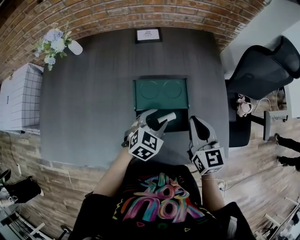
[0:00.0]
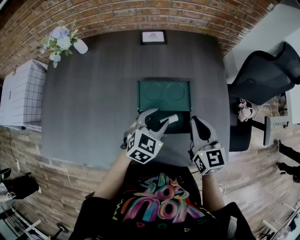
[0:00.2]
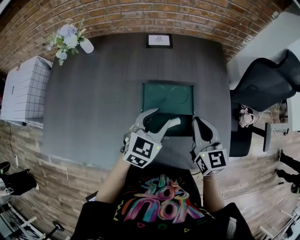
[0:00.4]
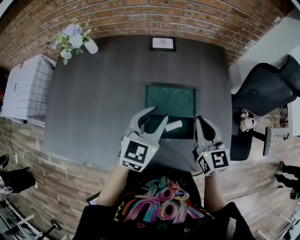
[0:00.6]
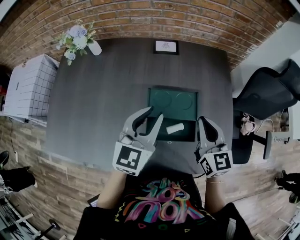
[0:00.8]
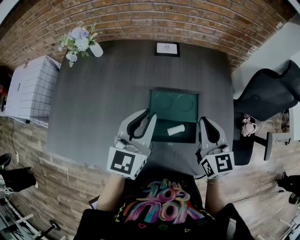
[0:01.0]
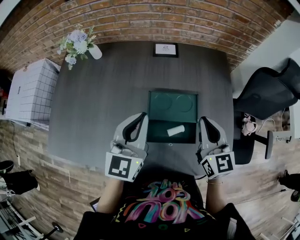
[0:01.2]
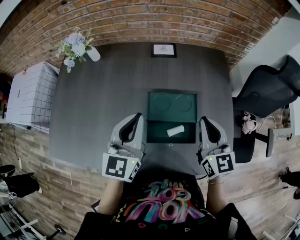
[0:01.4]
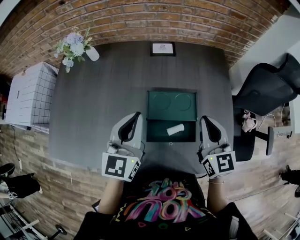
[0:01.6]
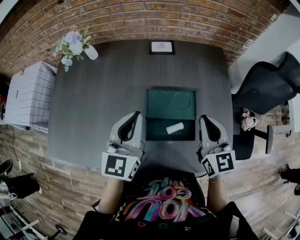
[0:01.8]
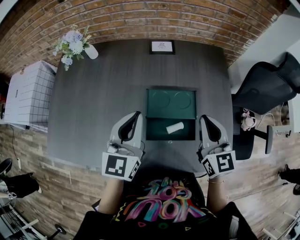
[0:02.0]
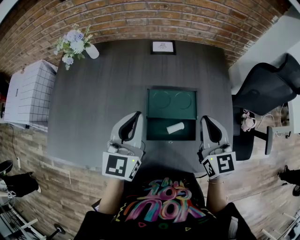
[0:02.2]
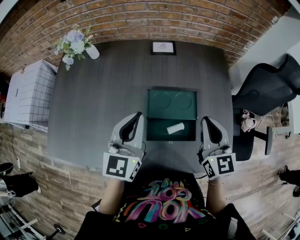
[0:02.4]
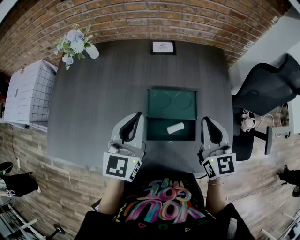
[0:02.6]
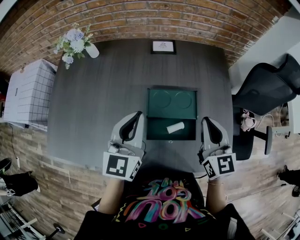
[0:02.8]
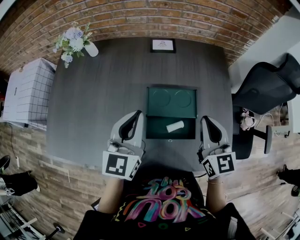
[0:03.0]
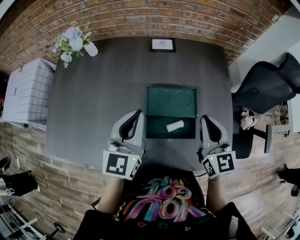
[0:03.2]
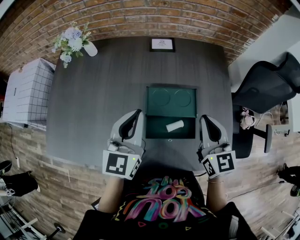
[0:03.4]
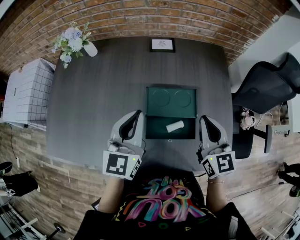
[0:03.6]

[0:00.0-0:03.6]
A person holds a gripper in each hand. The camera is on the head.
0:00.0 to 0:01.8: The right gripper shifts roughly 5 cm upward. Meanwhile the left gripper moves upward and to the left, roughly 25 cm, tilts its fingers roughly 30 degrees upward, and closes.
0:01.8 to 0:03.6: Both grippers stay about where they are.

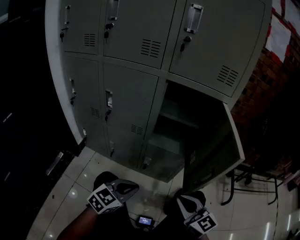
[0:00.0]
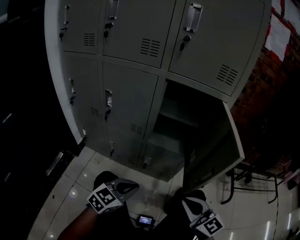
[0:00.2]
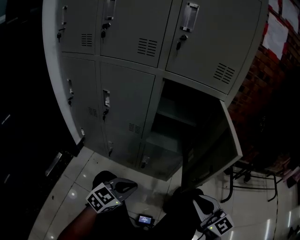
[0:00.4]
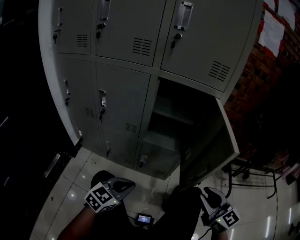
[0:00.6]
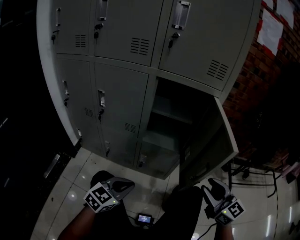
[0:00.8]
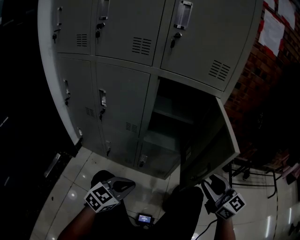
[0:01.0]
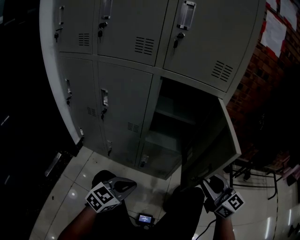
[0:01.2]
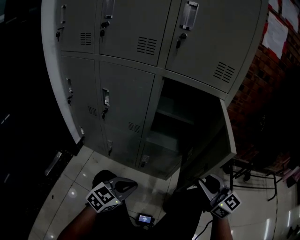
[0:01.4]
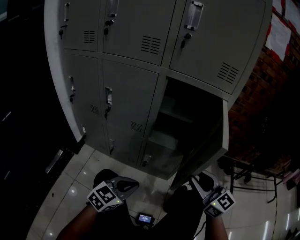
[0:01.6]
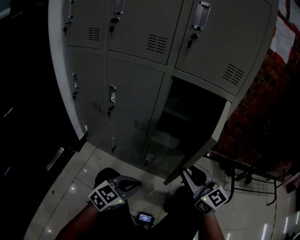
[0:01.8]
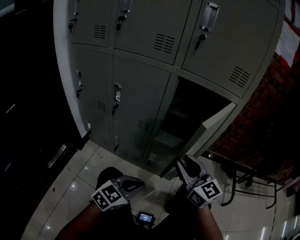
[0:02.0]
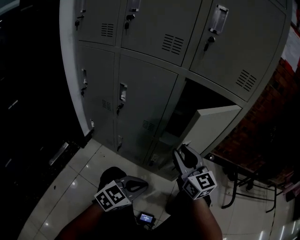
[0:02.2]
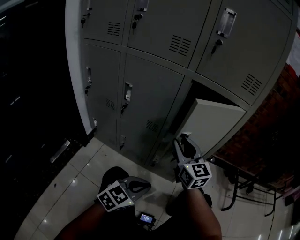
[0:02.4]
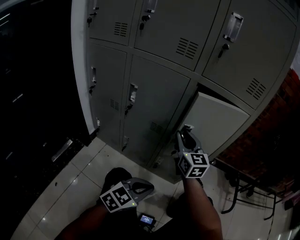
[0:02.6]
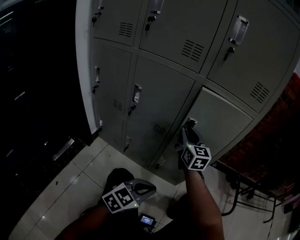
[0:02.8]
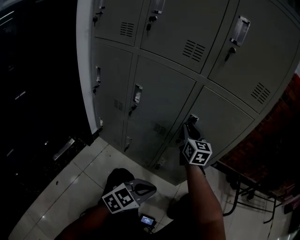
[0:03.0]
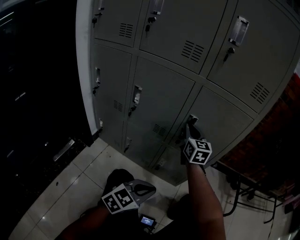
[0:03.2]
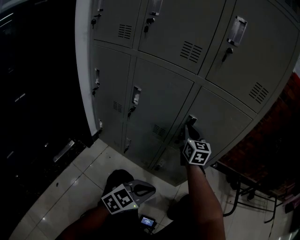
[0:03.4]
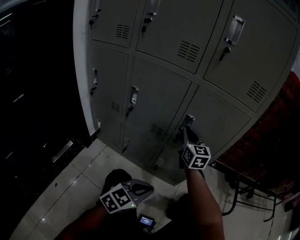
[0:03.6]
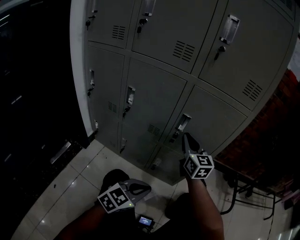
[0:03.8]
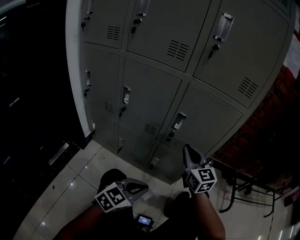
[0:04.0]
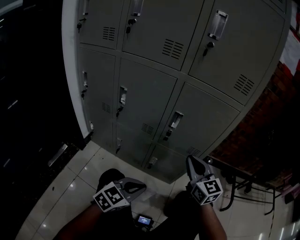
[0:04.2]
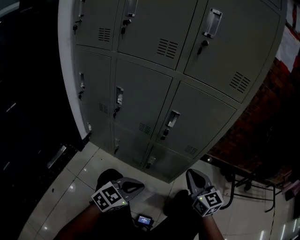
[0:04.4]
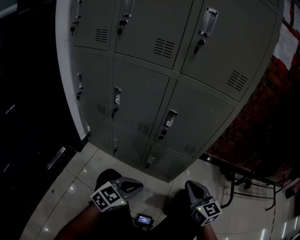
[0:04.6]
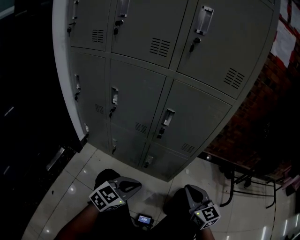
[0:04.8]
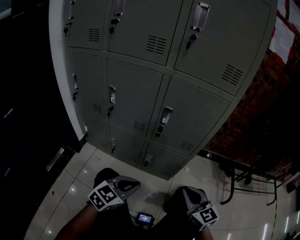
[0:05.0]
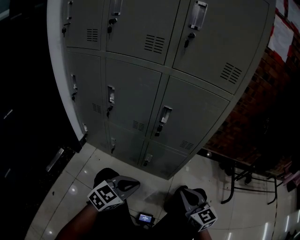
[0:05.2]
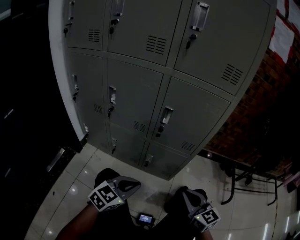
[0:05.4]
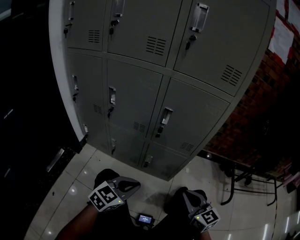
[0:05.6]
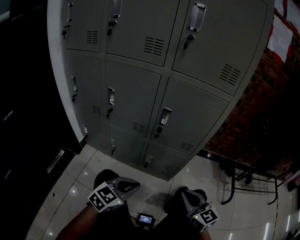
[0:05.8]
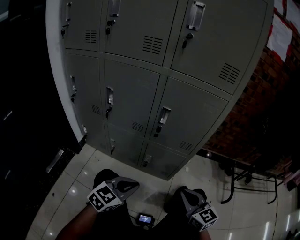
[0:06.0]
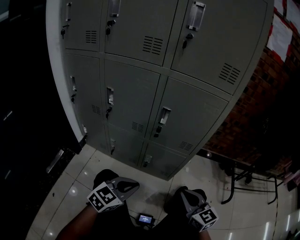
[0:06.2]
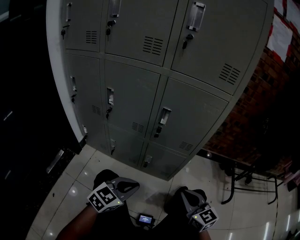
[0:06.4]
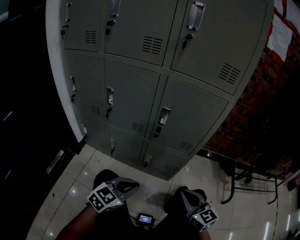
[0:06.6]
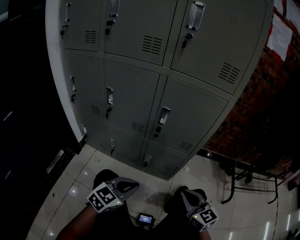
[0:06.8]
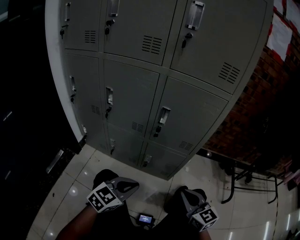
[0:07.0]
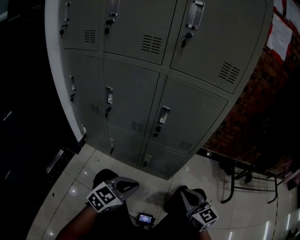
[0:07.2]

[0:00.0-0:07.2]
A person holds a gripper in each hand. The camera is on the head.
0:00.0 to 0:01.4: The right gripper heads upward, to the right and forward, covering roughly 10 cm, and opens up.
0:01.4 to 0:02.8: The right gripper travels forward and to the left by roughly 30 cm.
0:02.8 to 0:04.4: The right gripper goes some 20 cm backward and to the right, and closes up.
0:04.4 to 0:05.8: The right gripper heads backward and downward, covering approximately 10 cm.
0:05.8 to 0:07.2: Neither gripper changes place.

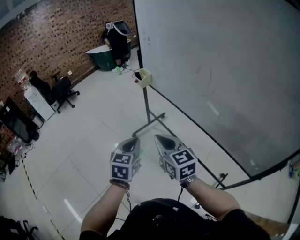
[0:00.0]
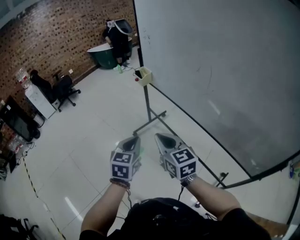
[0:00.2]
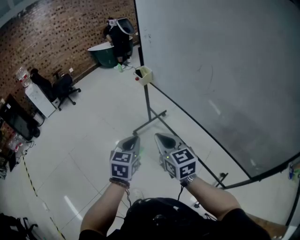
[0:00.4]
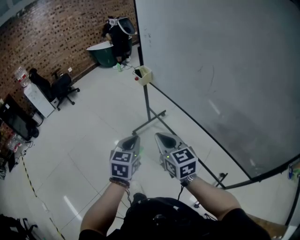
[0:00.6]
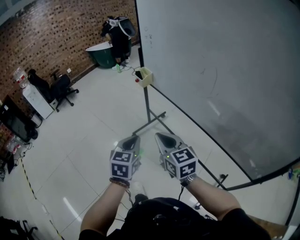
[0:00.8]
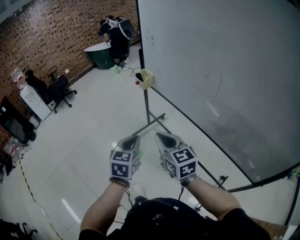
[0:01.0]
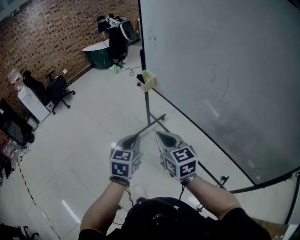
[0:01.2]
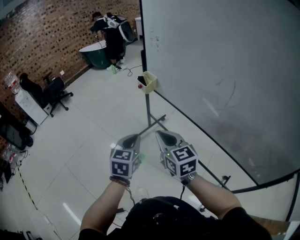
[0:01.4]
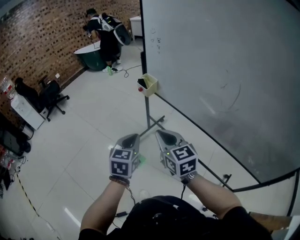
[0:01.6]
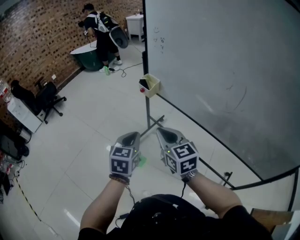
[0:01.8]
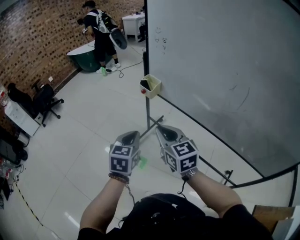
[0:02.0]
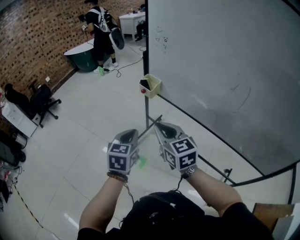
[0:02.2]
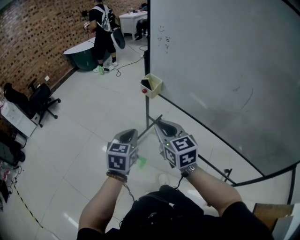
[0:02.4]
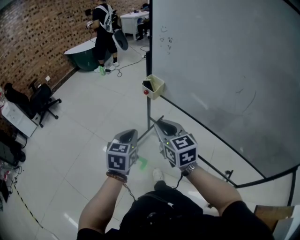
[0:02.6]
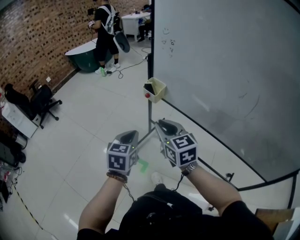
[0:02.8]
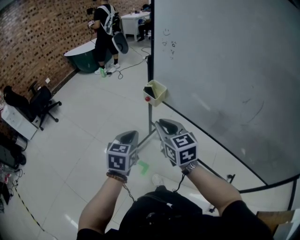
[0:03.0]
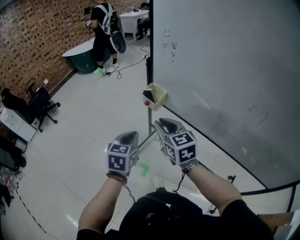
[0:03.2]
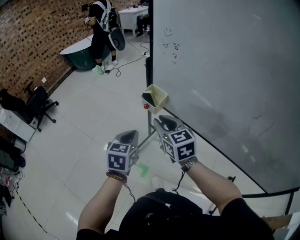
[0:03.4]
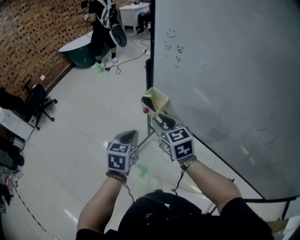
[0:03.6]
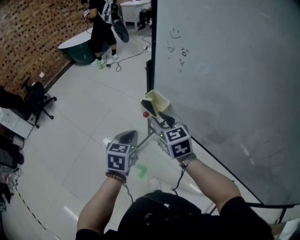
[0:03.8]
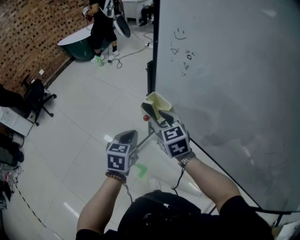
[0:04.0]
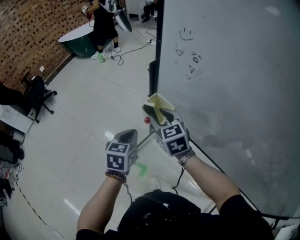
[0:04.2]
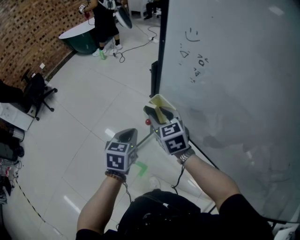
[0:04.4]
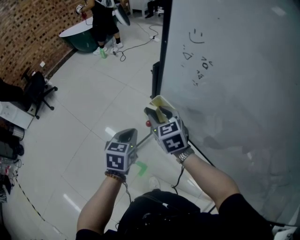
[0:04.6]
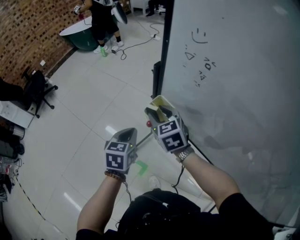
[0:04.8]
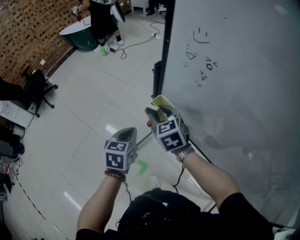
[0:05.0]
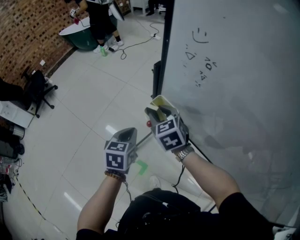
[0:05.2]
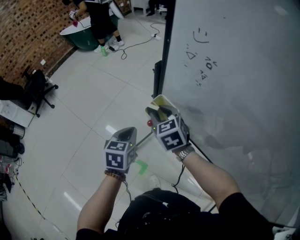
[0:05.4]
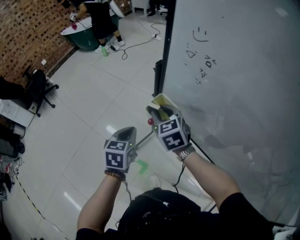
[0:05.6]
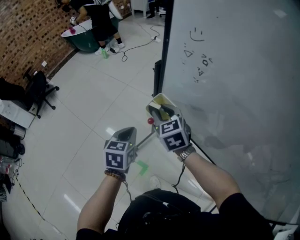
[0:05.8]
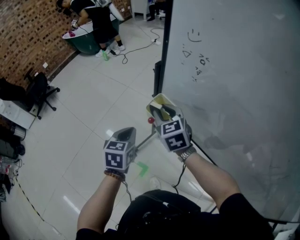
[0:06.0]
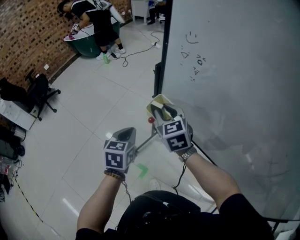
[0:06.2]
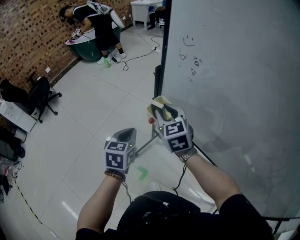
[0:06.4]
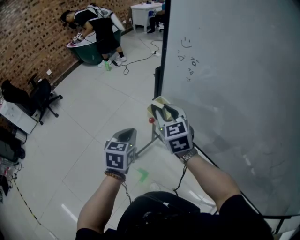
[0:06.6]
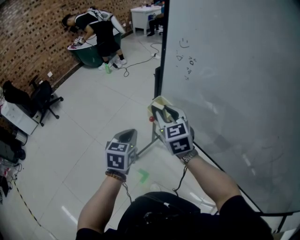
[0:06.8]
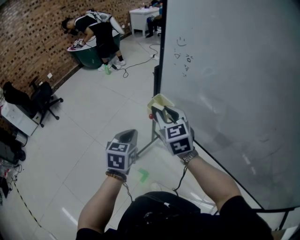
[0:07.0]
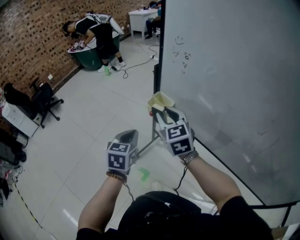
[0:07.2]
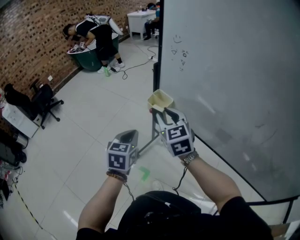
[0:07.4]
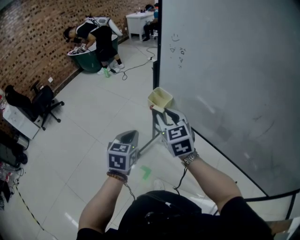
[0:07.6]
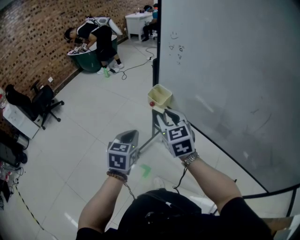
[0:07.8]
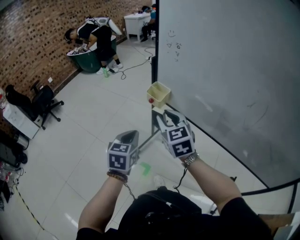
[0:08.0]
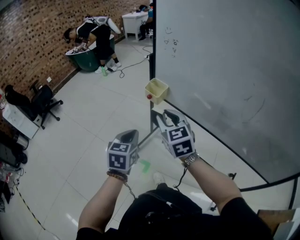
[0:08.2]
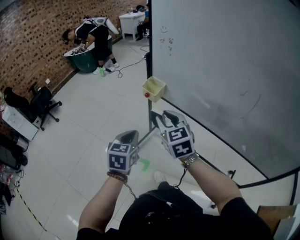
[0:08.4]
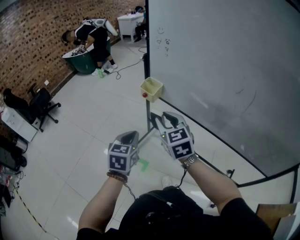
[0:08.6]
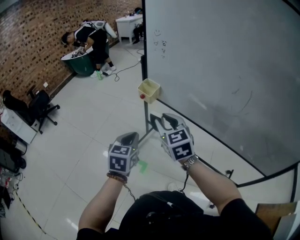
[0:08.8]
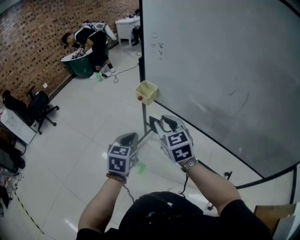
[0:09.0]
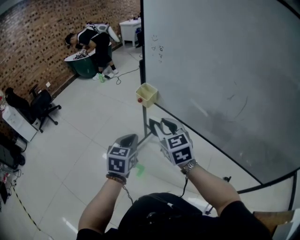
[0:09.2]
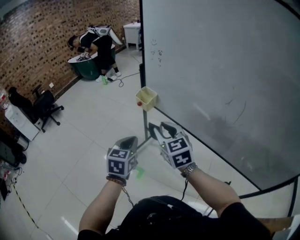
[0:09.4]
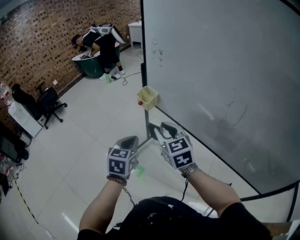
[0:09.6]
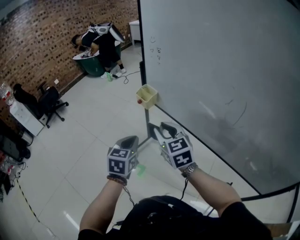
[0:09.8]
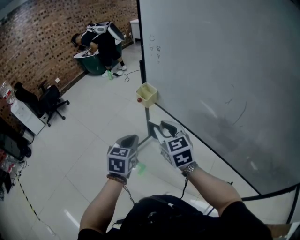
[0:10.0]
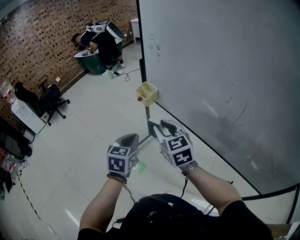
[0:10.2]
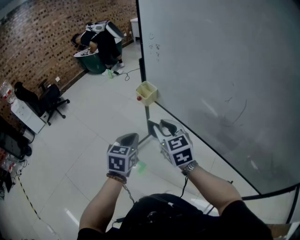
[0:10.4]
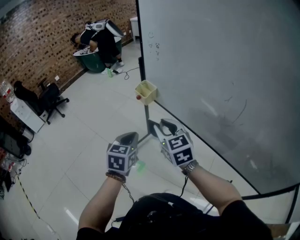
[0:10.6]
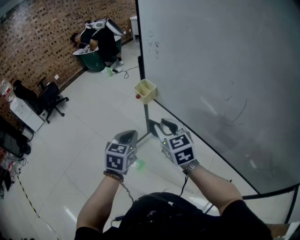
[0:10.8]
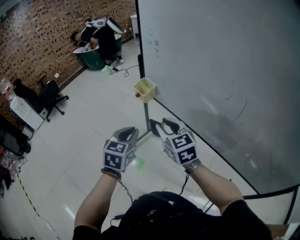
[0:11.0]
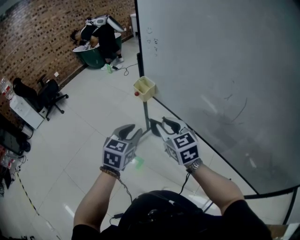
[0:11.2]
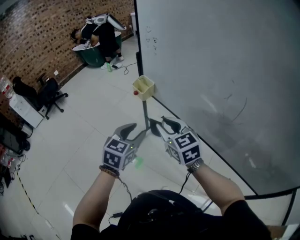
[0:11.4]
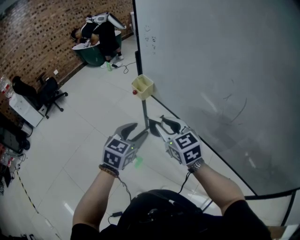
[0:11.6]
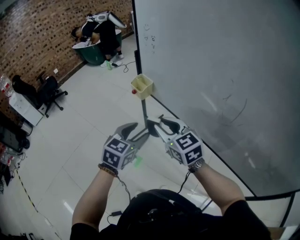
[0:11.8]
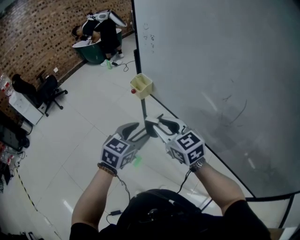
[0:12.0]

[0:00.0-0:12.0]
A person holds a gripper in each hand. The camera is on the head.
0:00.0 to 0:01.6: Both grippers travel together forward, some 20 cm.
0:01.6 to 0:03.0: The grippers both shift forward and to the left by some 15 cm.
0:03.0 to 0:04.4: The two grippers go roughly 25 cm forward. The right gripper opens.
0:04.4 to 0:06.0: The grippers move only a little.
0:06.0 to 0:07.6: The grippers both shift backward and upward by about 15 cm.
0:07.6 to 0:09.0: The right gripper heads backward, covering approximately 15 cm. Meanwhile the left gripper is displaced backward and to the right by roughly 10 cm.
0:09.0 to 0:10.4: The left gripper goes approximately 5 cm to the right.
0:10.4 to 0:12.0: The left gripper goes approximately 10 cm to the right, and opens.

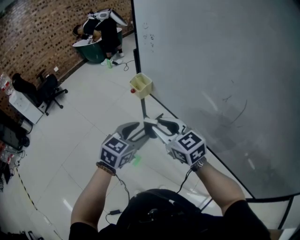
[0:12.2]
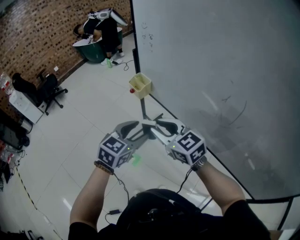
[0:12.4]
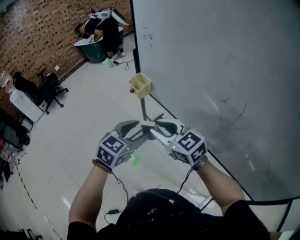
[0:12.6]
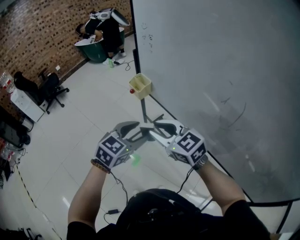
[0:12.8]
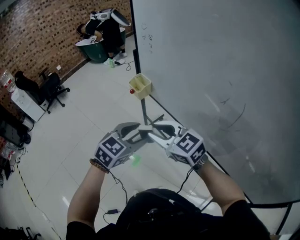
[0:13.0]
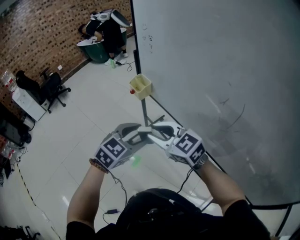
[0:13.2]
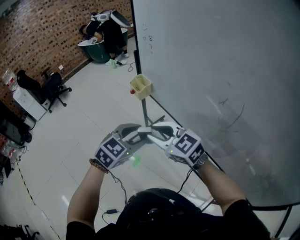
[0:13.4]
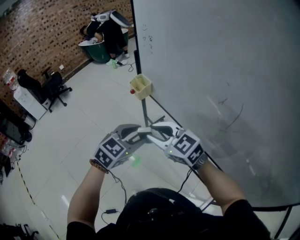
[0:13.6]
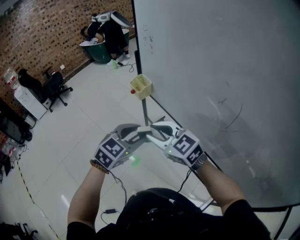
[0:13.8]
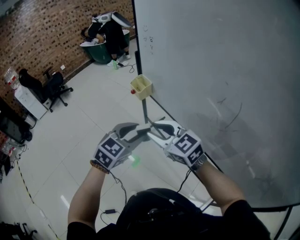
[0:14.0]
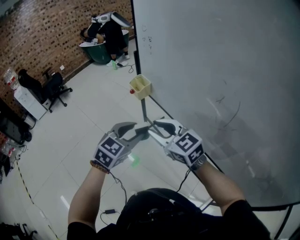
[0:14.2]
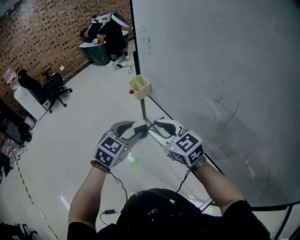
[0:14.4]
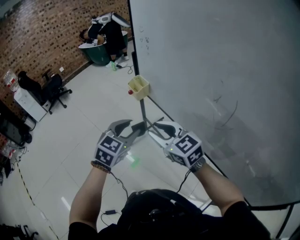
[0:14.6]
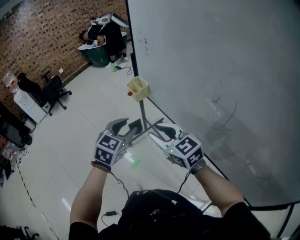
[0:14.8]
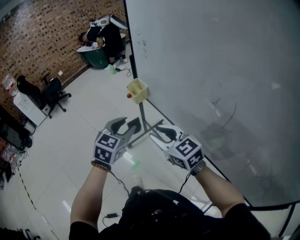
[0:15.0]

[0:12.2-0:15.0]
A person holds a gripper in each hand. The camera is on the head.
0:12.2 to 0:13.6: There are only small adjustments of the grippers.
0:13.6 to 0:15.0: The left gripper travels forward by some 5 cm, and changes its angle by roughly 20 degrees.
